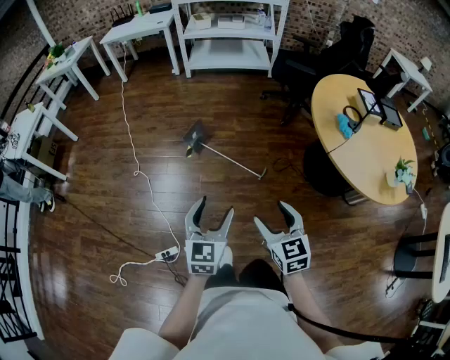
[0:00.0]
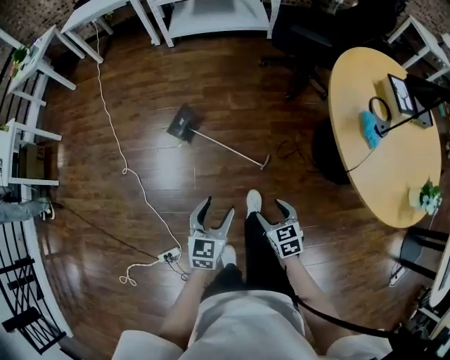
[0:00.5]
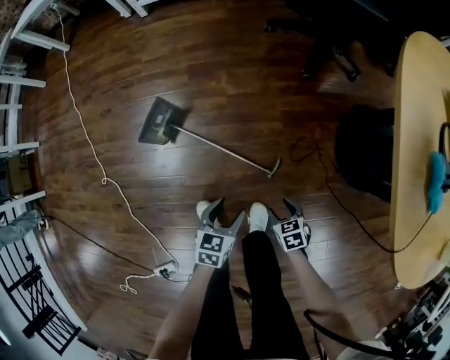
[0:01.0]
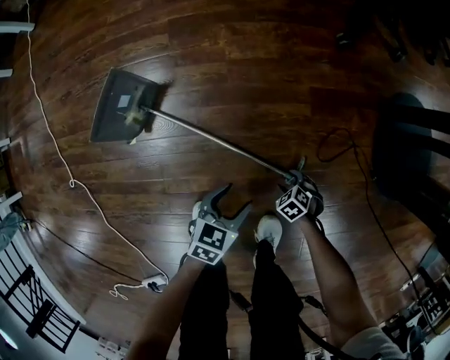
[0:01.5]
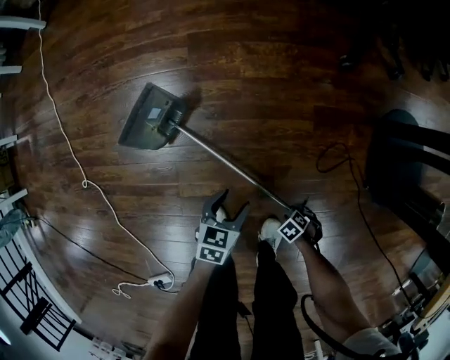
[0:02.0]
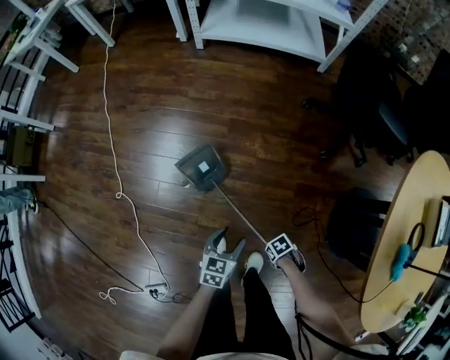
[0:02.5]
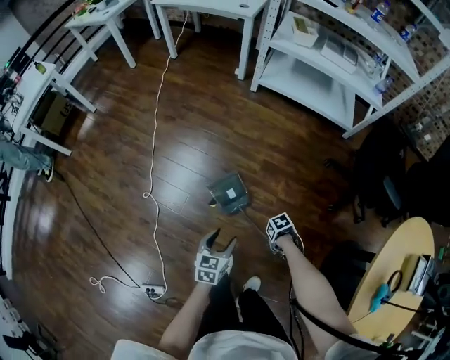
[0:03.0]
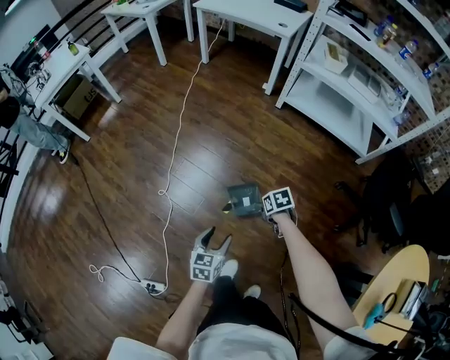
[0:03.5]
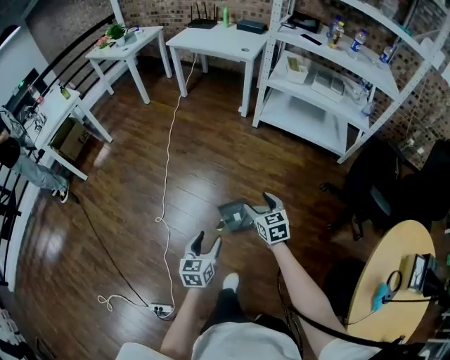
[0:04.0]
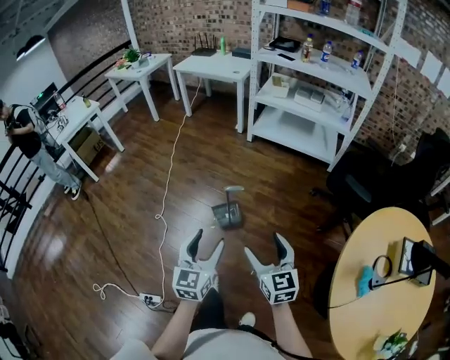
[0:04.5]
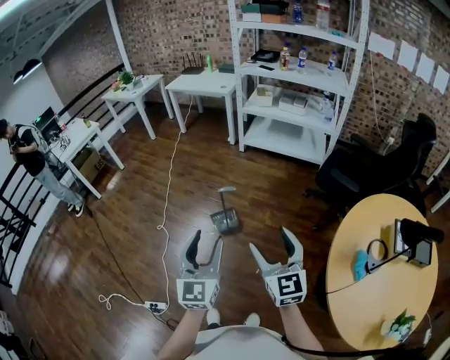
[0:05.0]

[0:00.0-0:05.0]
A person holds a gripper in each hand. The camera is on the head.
0:00.0 to 0:02.5: Both grippers are carried roughly 50 cm. The left gripper rotates about 30 degrees. The right gripper shifts some 50 cm downward, tips its fingers downward by some 30 degrees, and closes up.
0:02.5 to 0:05.0: The two grippers go approximately 60 cm upward. The left gripper points its fingers roughly 40 degrees further upward; the right gripper tilts its fingers roughly 60 degrees upward, and opens.

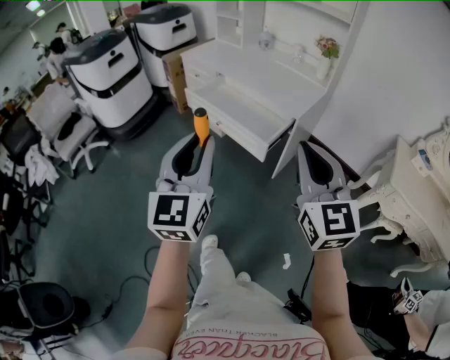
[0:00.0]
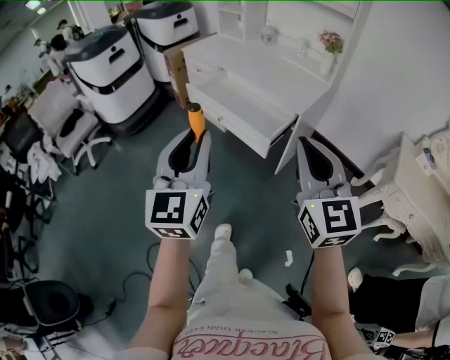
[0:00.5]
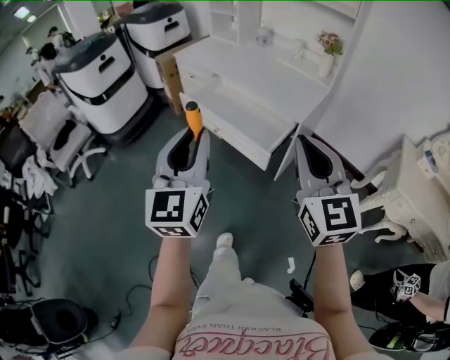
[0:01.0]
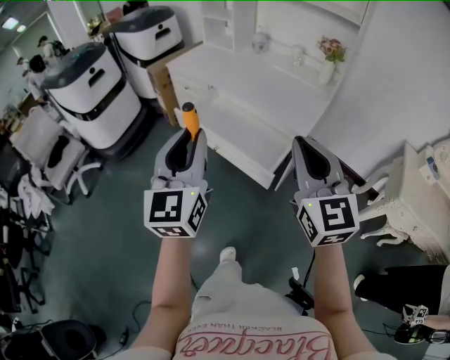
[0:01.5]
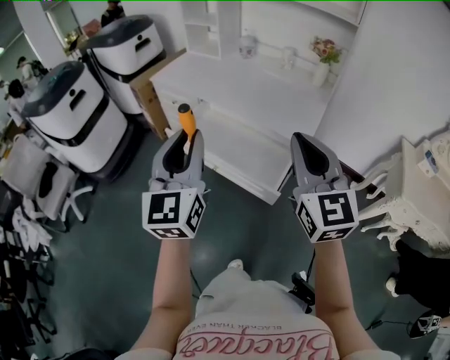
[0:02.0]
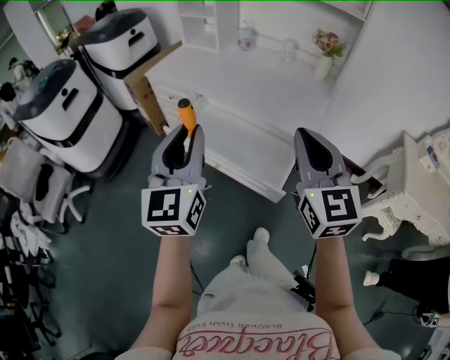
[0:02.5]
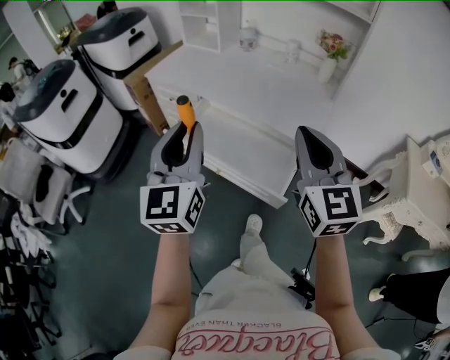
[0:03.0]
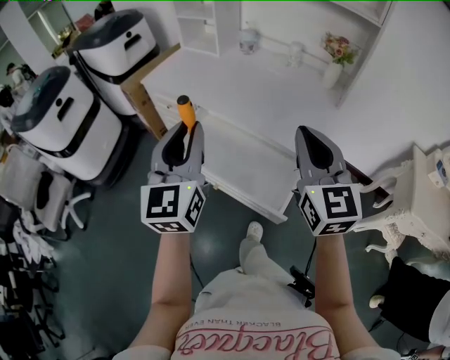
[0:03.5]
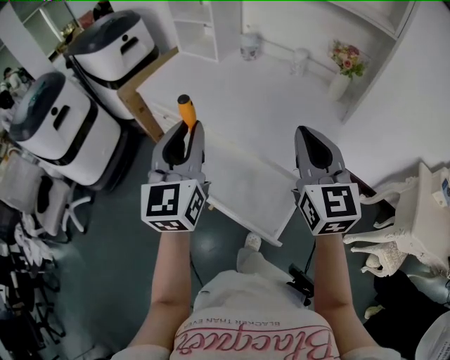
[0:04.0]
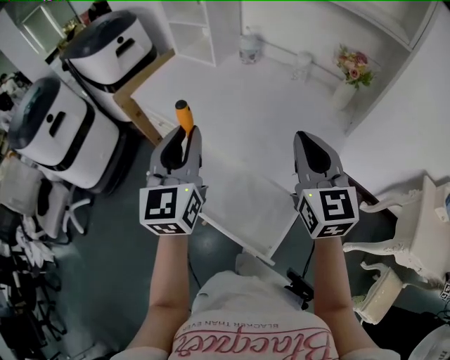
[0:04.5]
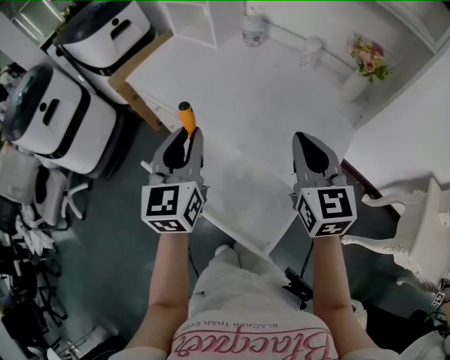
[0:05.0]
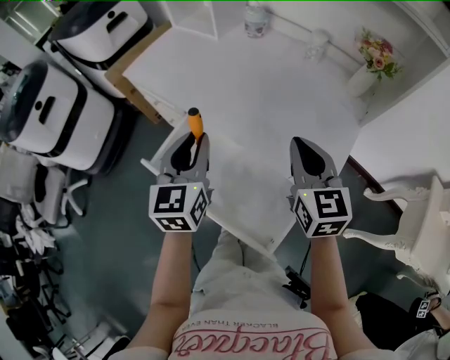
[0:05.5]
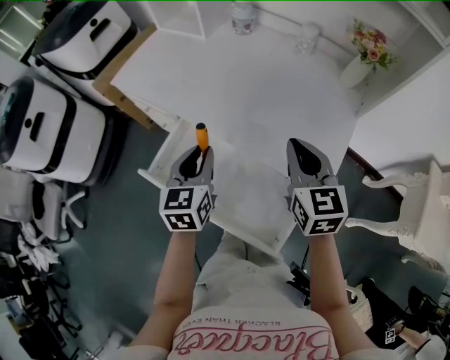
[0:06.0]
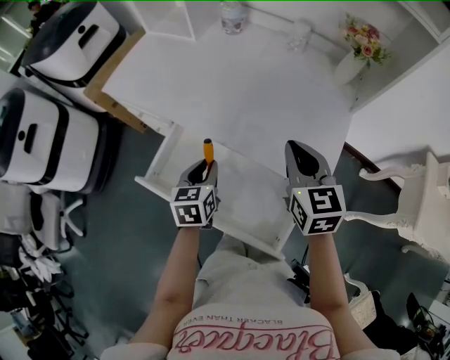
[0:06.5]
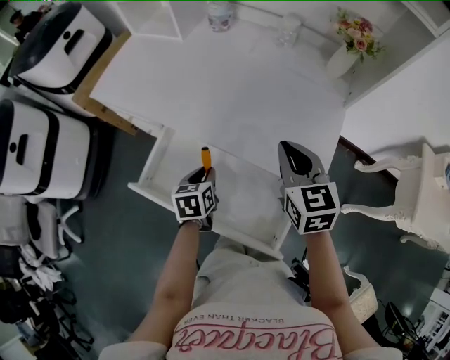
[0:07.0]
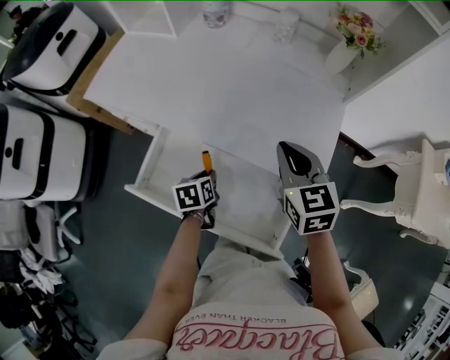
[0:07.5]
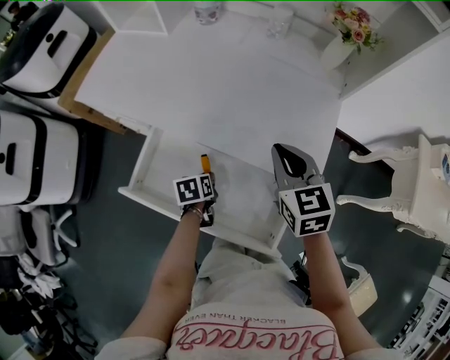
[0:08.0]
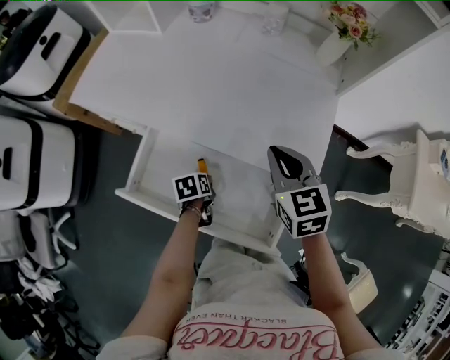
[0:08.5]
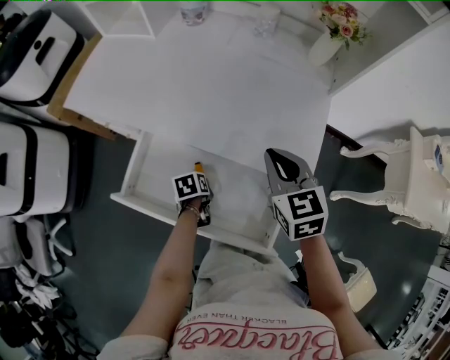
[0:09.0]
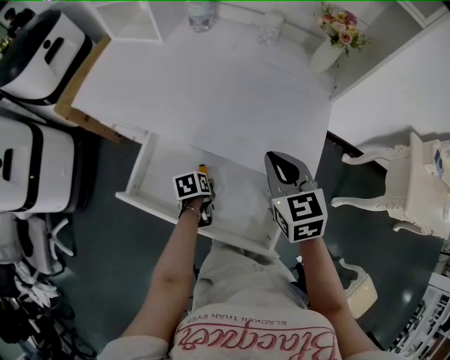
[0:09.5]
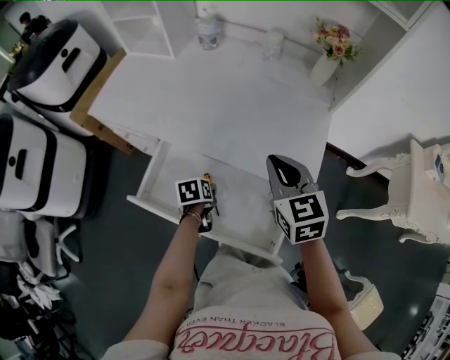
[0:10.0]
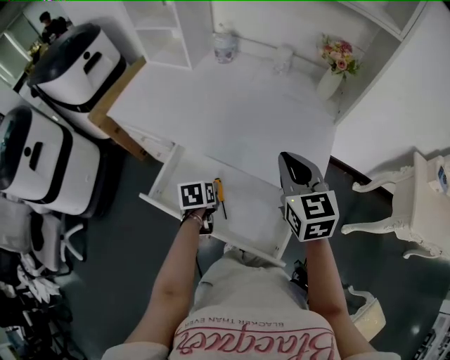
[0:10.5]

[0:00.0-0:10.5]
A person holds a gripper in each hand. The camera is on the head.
0:00.0 to 0:02.0: Both grippers move forward, some 30 cm.
0:02.0 to 0:04.0: The two grippers go about 25 cm forward.
0:04.0 to 0:06.5: The left gripper moves downward, roughly 30 cm, and tips its fingers downward by roughly 40 degrees. The right gripper shifts some 20 cm downward and forward, and swivels about 20 degrees.
0:06.5 to 0:08.5: The right gripper is displaced downward by some 5 cm. The left gripper shifts about 20 cm downward, and turns by about 40 degrees.
0:08.5 to 0:10.5: The grippers both shift upward by roughly 10 cm.

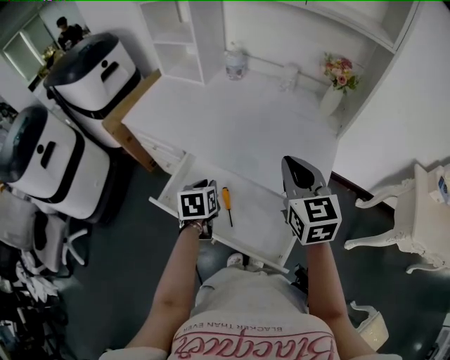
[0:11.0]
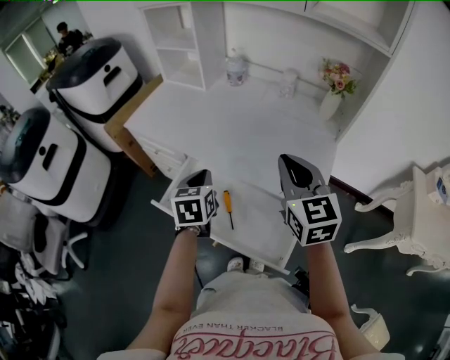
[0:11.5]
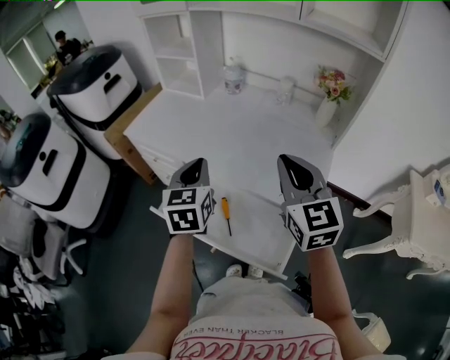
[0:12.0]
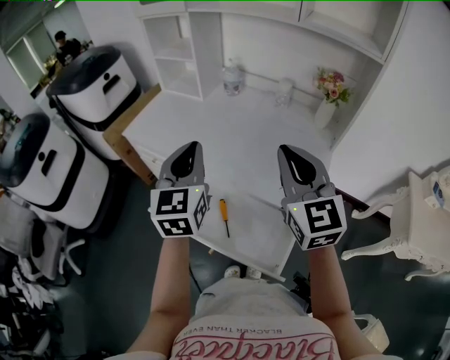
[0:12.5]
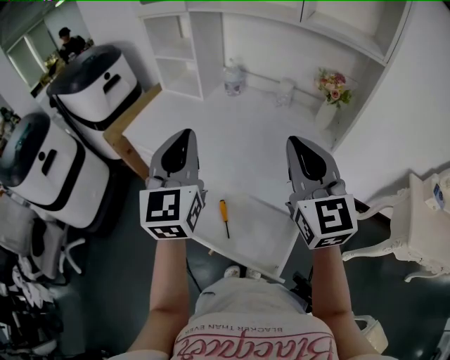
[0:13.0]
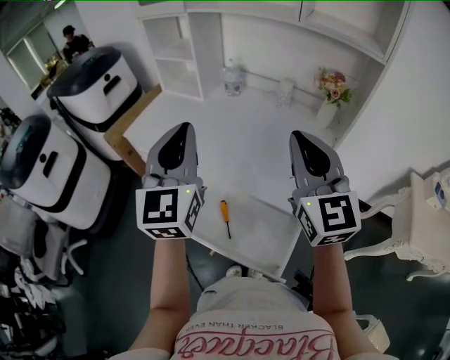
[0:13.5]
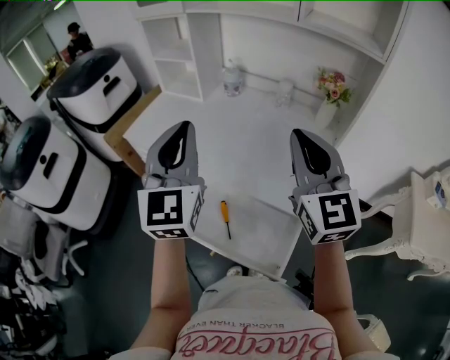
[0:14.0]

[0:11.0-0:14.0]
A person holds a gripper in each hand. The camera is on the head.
0:11.0 to 0:12.5: The right gripper heads upward, covering about 10 cm. The left gripper shifts some 25 cm upward, and points its fingers roughly 40 degrees further upward.
0:12.5 to 0:14.0: The left gripper shifts some 10 cm upward; the right gripper shifts by about 5 cm.

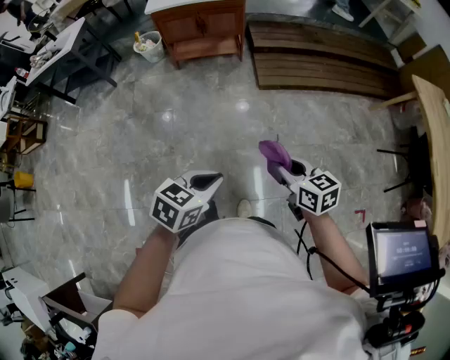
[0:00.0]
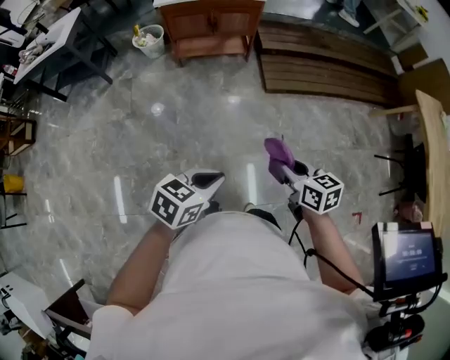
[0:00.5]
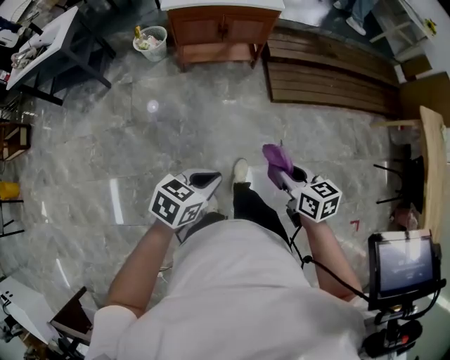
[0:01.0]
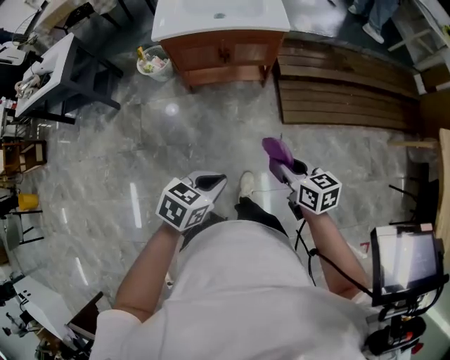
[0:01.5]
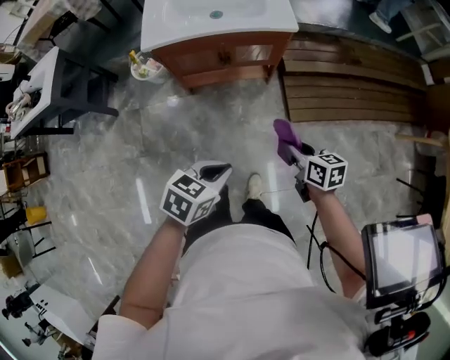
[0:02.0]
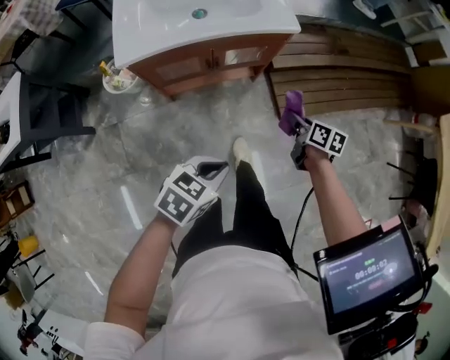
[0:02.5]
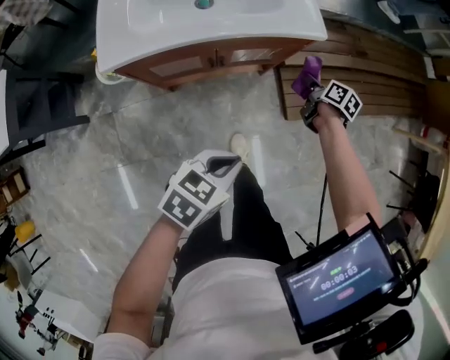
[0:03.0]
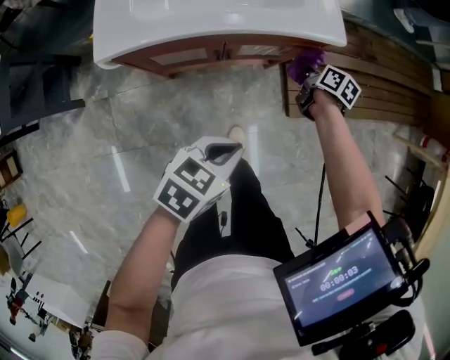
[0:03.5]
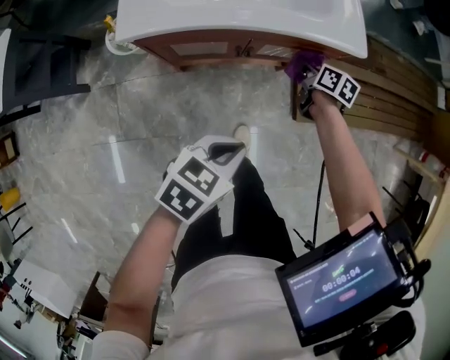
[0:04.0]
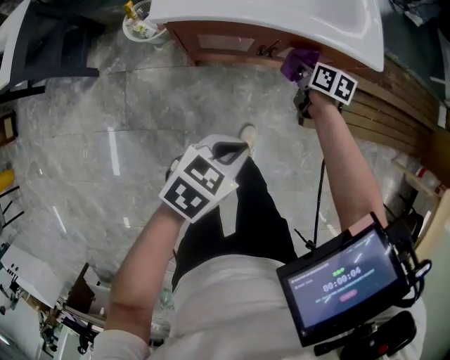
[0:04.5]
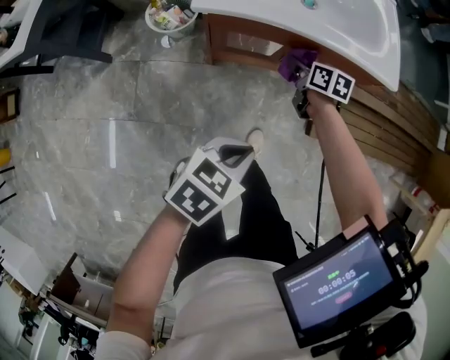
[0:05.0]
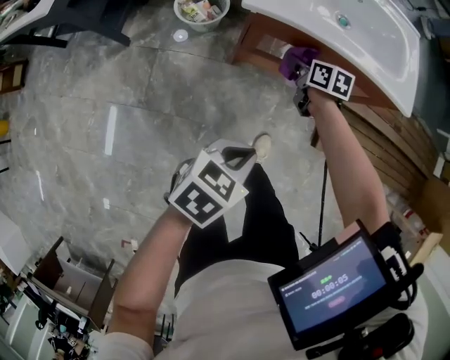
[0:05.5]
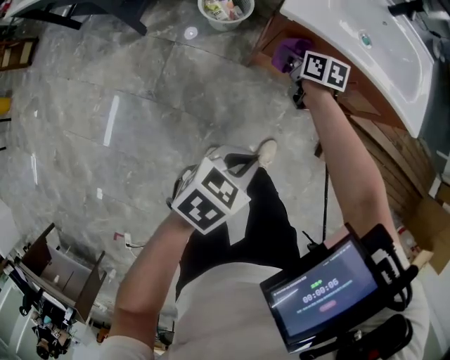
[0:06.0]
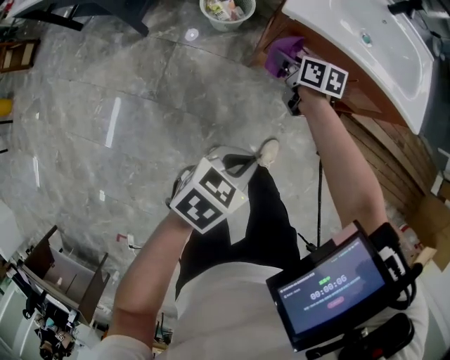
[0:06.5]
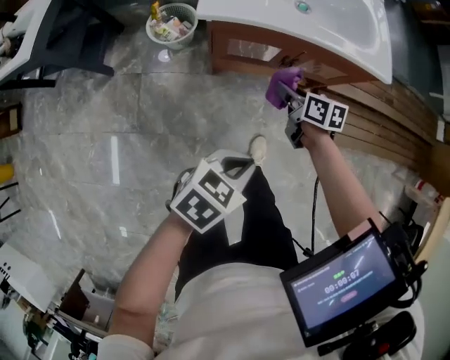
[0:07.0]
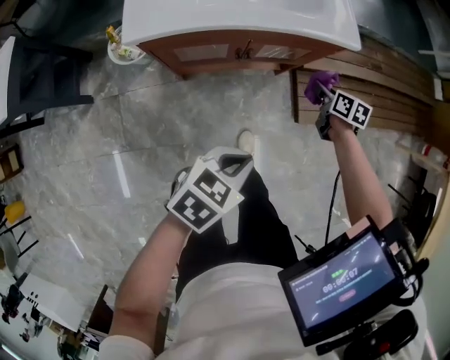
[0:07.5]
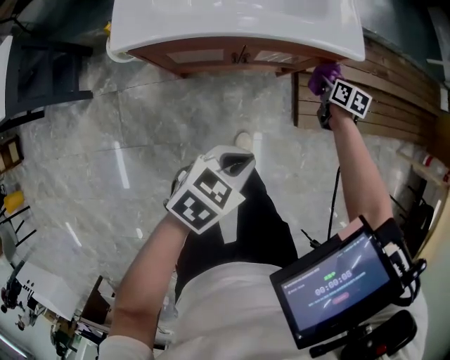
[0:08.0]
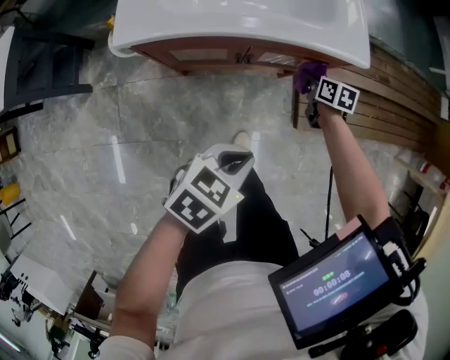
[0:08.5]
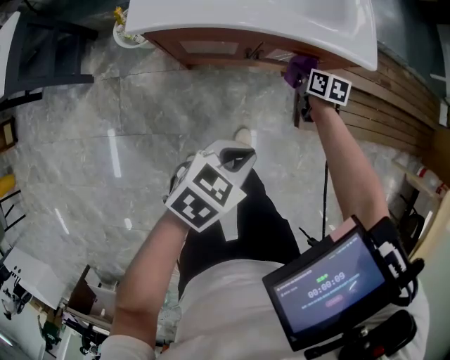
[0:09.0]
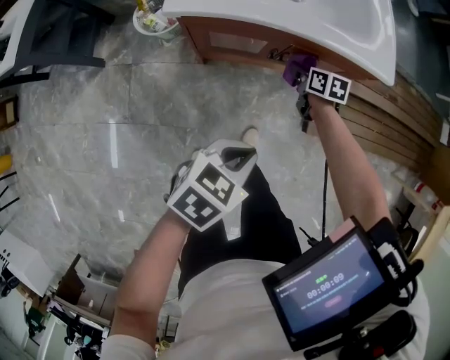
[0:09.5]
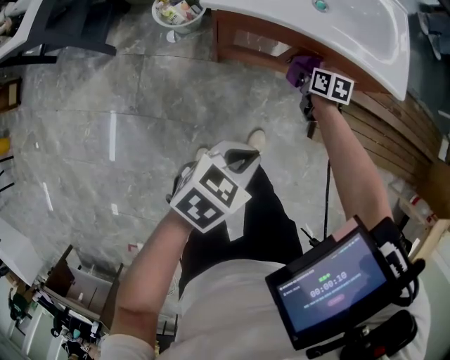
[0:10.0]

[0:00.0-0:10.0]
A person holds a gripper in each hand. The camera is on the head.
0:00.0 to 0:02.0: The pair of grippers is taken forward and to the left, roughly 60 cm.
0:02.0 to 0:04.0: The left gripper is displaced forward, to the left and downward by some 30 cm. Meanwhile the right gripper heads forward, downward and to the left, covering some 50 cm.
0:04.0 to 0:06.0: The left gripper shifts by roughly 25 cm, while the right gripper shifts by roughly 40 cm, and changes its angle by some 40 degrees.
0:06.0 to 0:08.0: The left gripper moves roughly 25 cm, and changes its angle by some 20 degrees, while the right gripper moves approximately 50 cm, and rotates approximately 30 degrees.
0:08.0 to 0:10.0: The left gripper goes about 15 cm to the left and backward. Meanwhile the right gripper travels to the left by roughly 25 cm, and swivels approximately 20 degrees.
